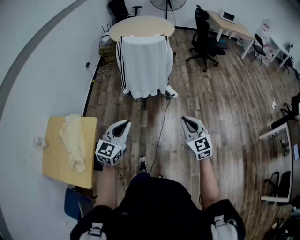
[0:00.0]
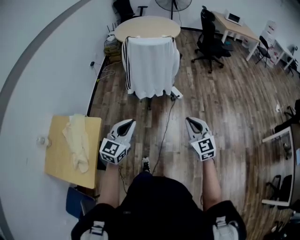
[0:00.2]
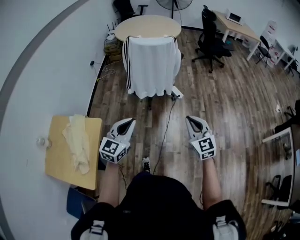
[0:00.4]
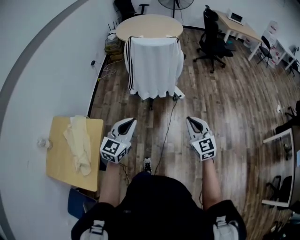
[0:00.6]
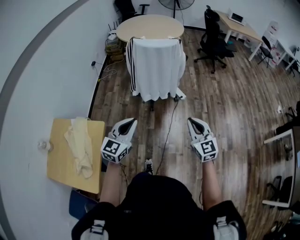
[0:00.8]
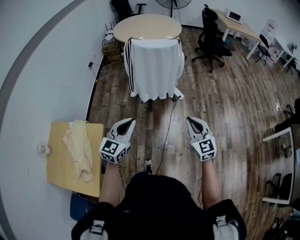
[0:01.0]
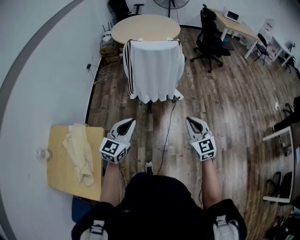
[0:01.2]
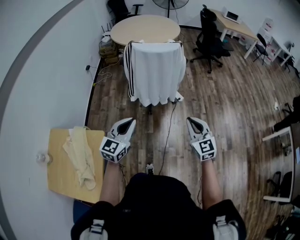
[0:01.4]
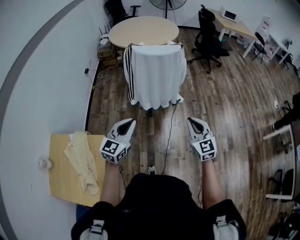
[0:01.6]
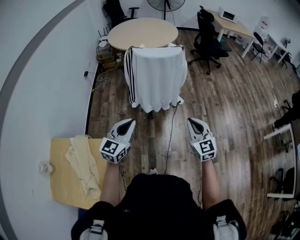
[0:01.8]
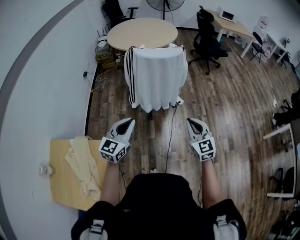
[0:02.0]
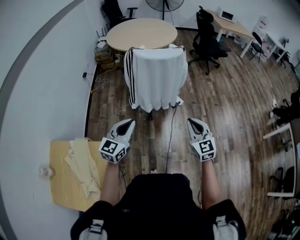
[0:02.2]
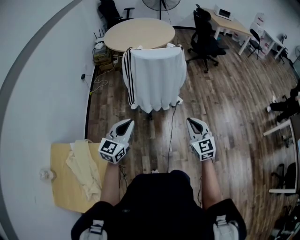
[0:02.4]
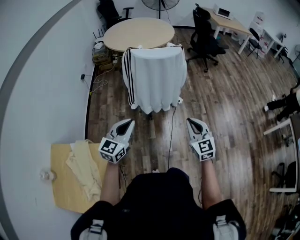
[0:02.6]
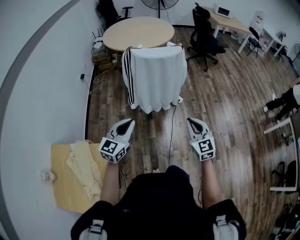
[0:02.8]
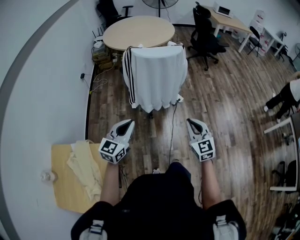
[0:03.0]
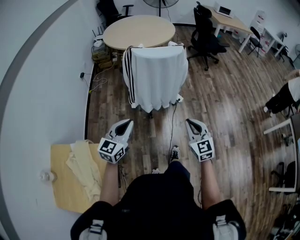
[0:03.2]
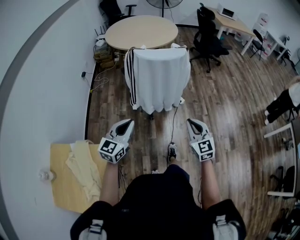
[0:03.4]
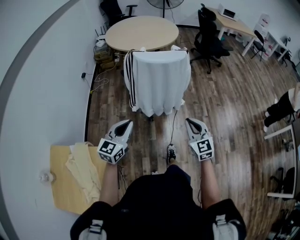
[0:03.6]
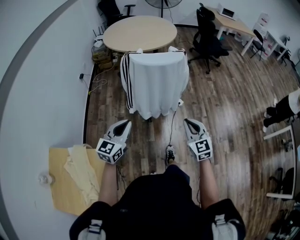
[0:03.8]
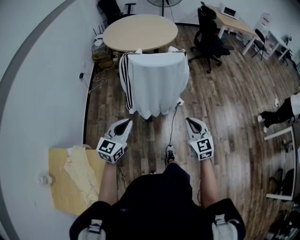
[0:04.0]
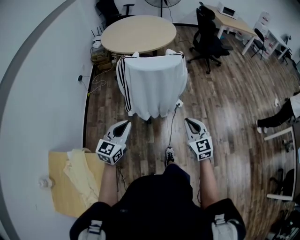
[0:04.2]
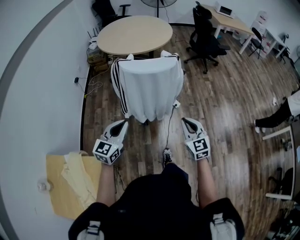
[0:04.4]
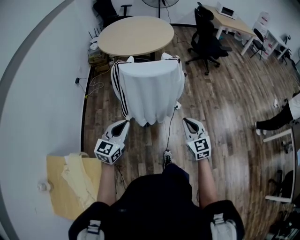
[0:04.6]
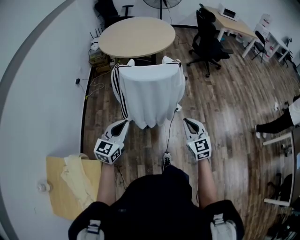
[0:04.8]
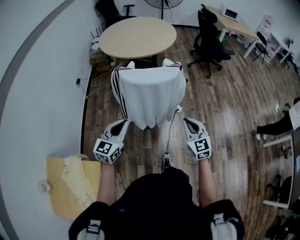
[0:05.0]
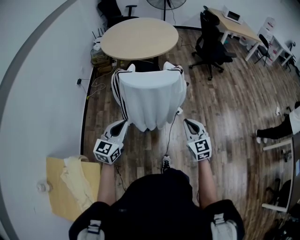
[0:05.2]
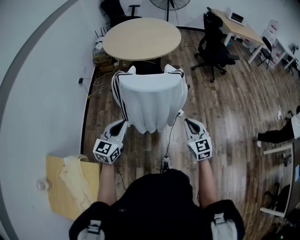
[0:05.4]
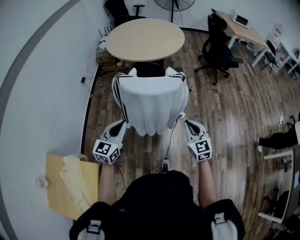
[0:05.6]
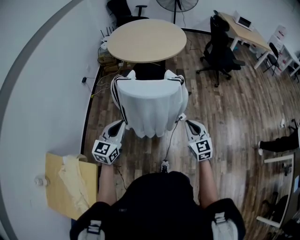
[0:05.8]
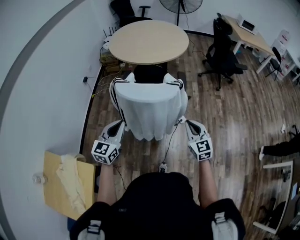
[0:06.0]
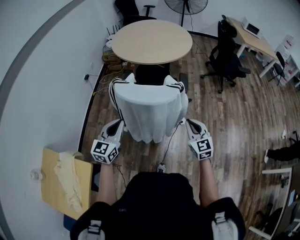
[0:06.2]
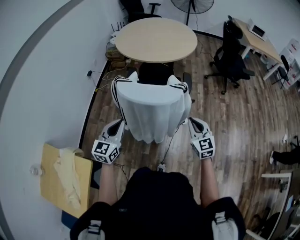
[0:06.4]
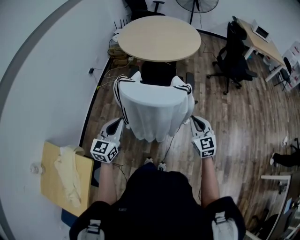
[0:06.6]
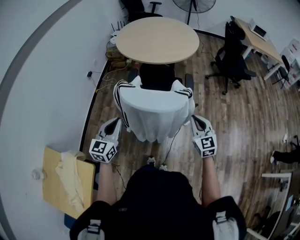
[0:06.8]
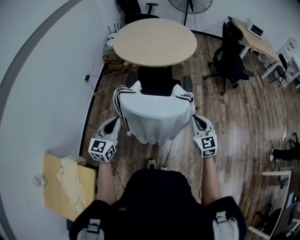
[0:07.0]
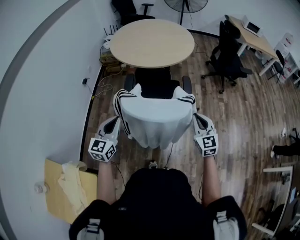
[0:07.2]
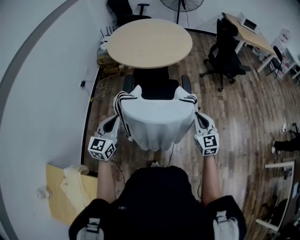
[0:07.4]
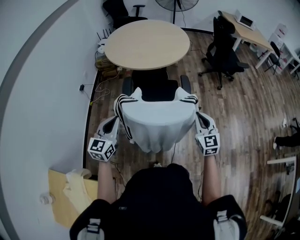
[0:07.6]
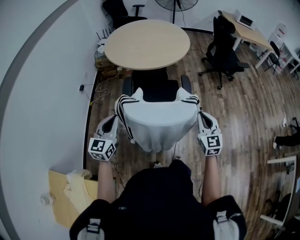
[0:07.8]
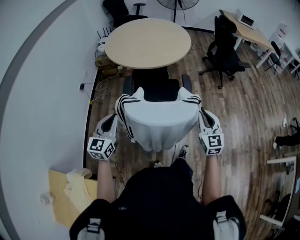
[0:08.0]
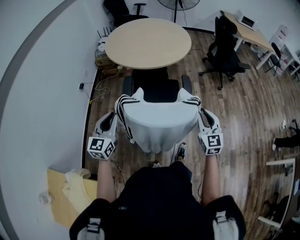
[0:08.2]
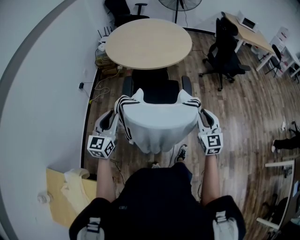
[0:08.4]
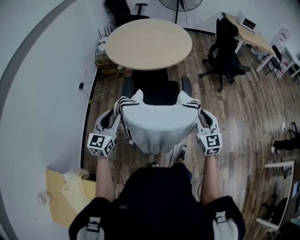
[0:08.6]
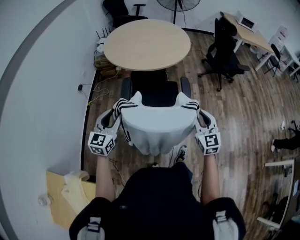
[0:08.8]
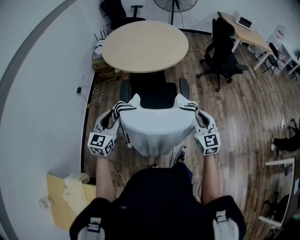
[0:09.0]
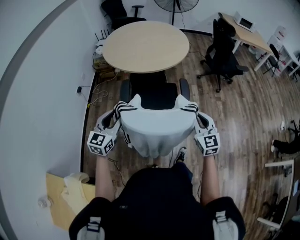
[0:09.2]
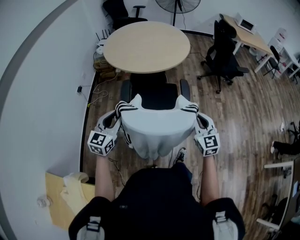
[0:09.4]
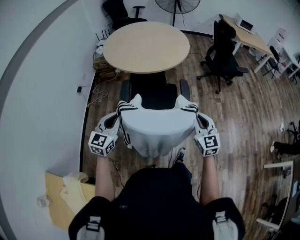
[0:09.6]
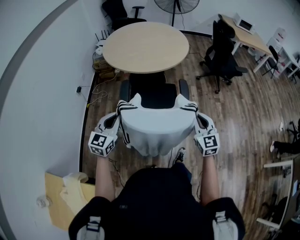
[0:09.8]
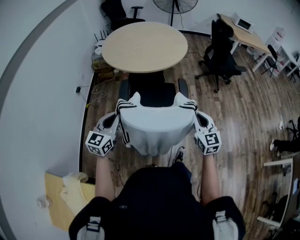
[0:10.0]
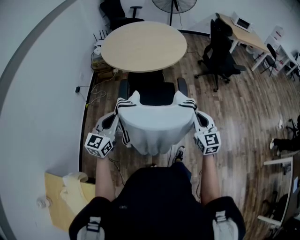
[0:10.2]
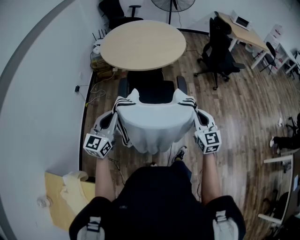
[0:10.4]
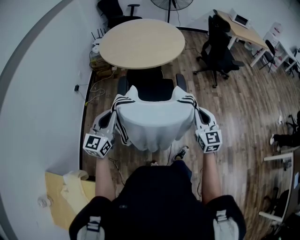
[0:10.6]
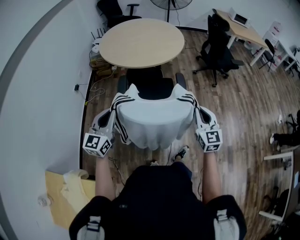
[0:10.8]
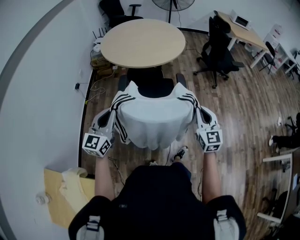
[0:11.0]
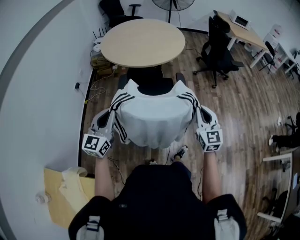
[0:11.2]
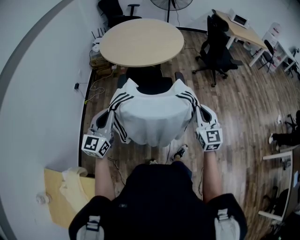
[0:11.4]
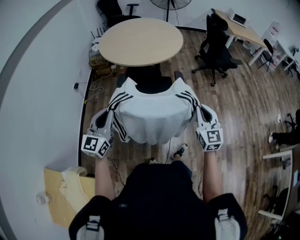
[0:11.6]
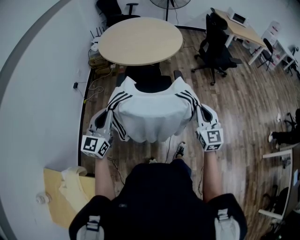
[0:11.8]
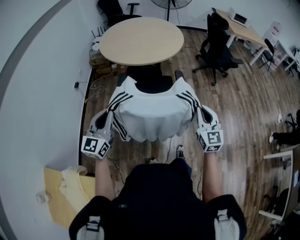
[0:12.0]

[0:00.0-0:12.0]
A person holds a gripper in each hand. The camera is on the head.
0:00.0 to 0:01.6: The two grippers go about 20 cm forward and to the left.
0:01.6 to 0:03.0: The right gripper changes place by approximately 5 cm; the left gripper moves roughly 5 cm.
0:03.0 to 0:04.4: Both grippers move forward, approximately 15 cm.
0:04.4 to 0:06.0: Both grippers move forward, some 15 cm.
0:06.0 to 0:07.6: The right gripper moves forward, roughly 15 cm; the left gripper travels forward and to the left by some 15 cm.
0:07.6 to 0:09.0: The left gripper goes approximately 5 cm forward, and opens its fingers.
0:09.0 to 0:10.4: The left gripper changes place by roughly 5 cm, and closes up.
0:10.4 to 0:12.0: The right gripper ends up roughly 5 cm from where it was. The left gripper travels backward by some 5 cm.

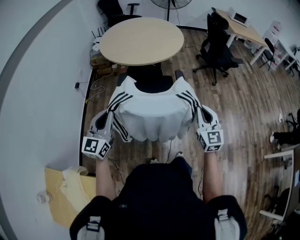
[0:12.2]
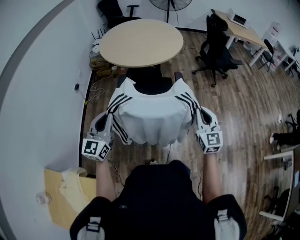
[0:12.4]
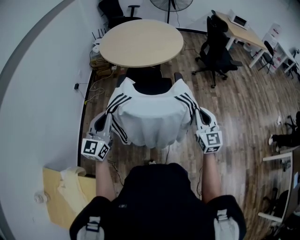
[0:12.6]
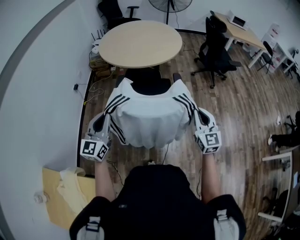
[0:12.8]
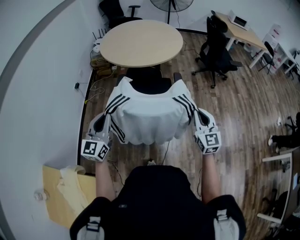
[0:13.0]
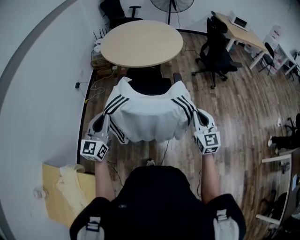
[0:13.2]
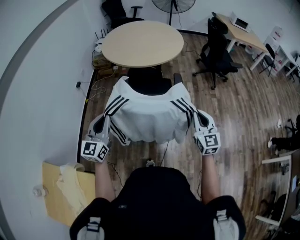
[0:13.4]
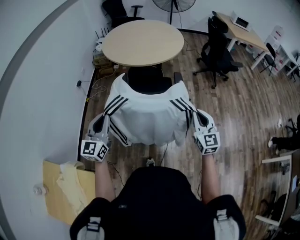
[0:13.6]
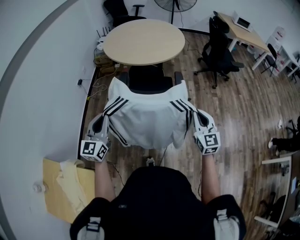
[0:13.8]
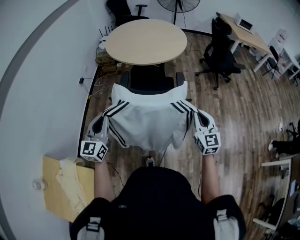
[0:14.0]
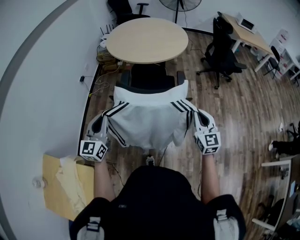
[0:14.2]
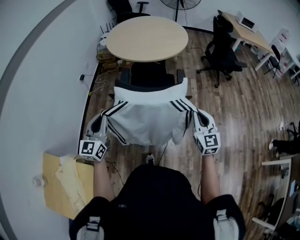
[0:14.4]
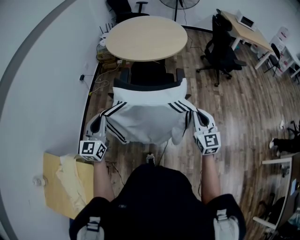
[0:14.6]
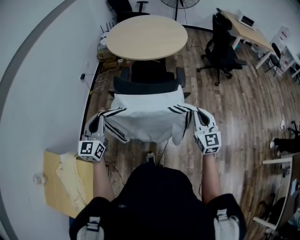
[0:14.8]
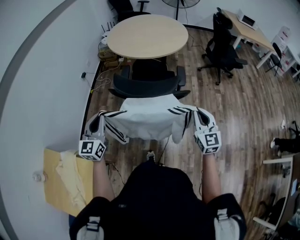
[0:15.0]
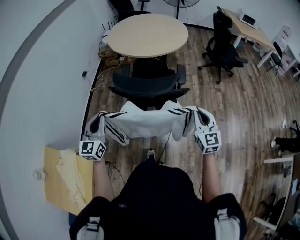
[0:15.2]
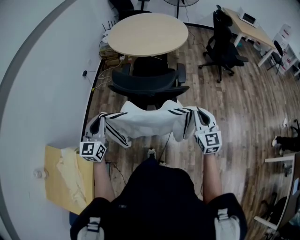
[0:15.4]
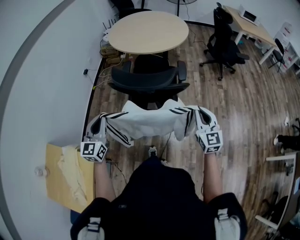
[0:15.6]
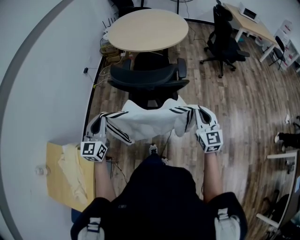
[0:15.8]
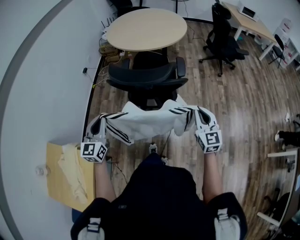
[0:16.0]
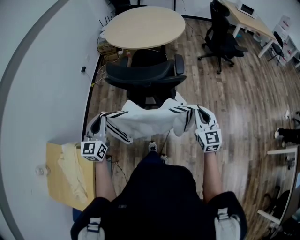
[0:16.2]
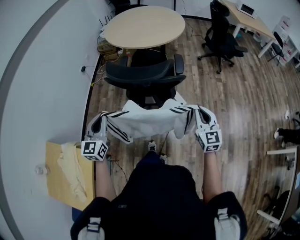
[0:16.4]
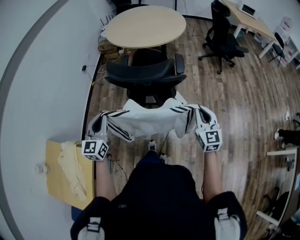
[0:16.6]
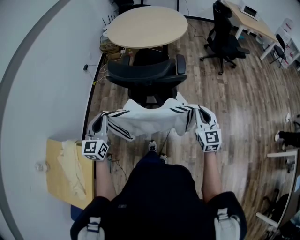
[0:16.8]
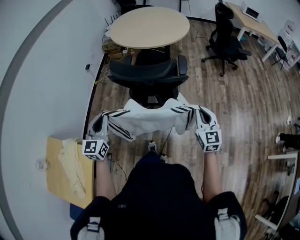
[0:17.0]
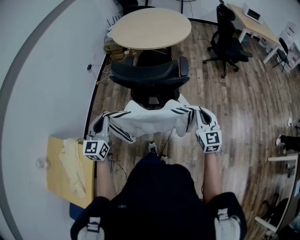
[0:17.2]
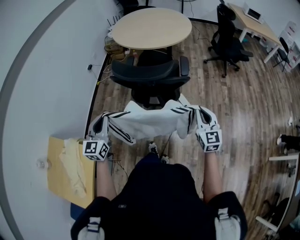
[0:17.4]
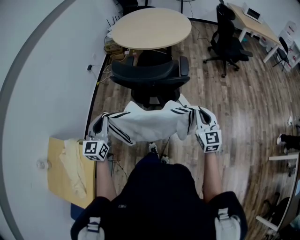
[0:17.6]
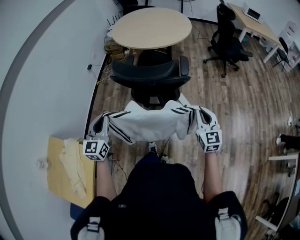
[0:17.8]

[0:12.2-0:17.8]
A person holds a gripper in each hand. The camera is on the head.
0:12.2 to 0:13.6: The left gripper ends up about 5 cm from where it was.
0:13.6 to 0:15.0: The left gripper is displaced backward by roughly 5 cm.
0:15.0 to 0:16.4: Both grippers travel together backward, approximately 5 cm.
0:16.4 to 0:17.8: There are only small adjustments of the grippers.

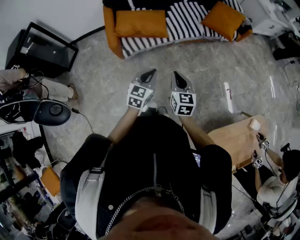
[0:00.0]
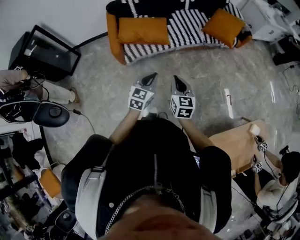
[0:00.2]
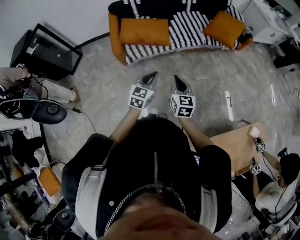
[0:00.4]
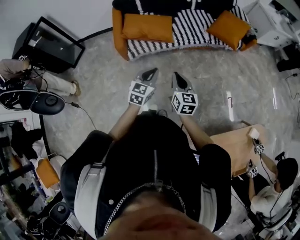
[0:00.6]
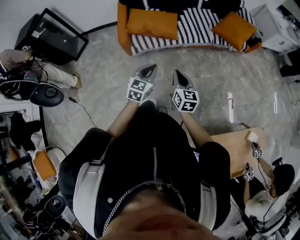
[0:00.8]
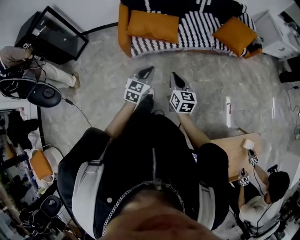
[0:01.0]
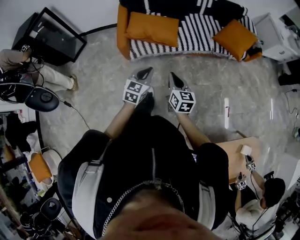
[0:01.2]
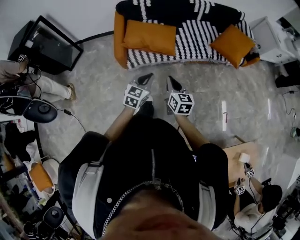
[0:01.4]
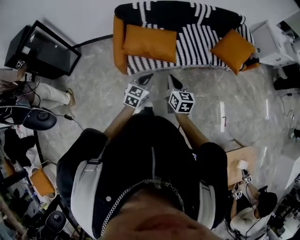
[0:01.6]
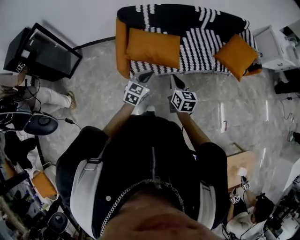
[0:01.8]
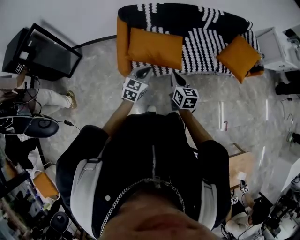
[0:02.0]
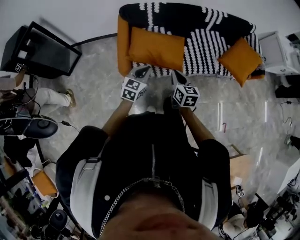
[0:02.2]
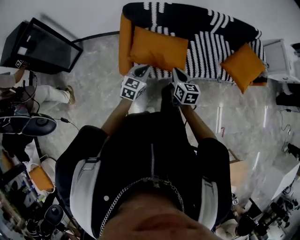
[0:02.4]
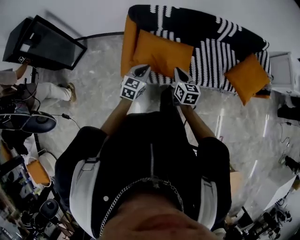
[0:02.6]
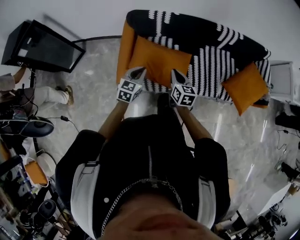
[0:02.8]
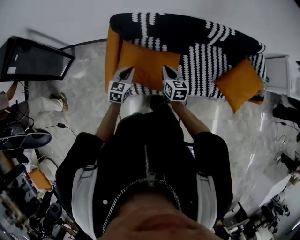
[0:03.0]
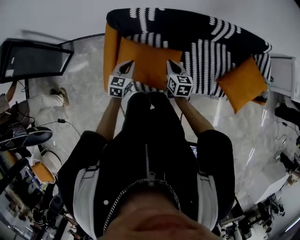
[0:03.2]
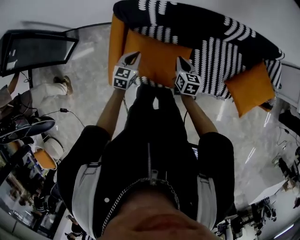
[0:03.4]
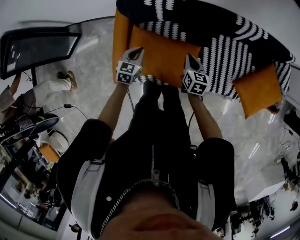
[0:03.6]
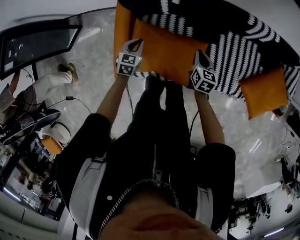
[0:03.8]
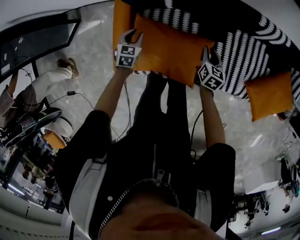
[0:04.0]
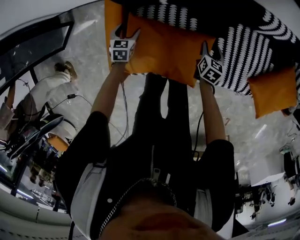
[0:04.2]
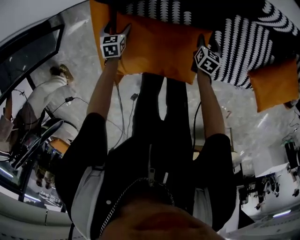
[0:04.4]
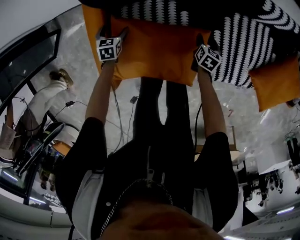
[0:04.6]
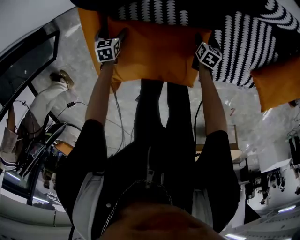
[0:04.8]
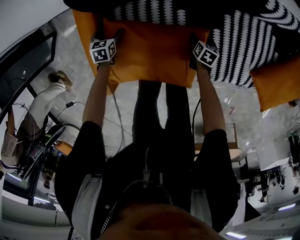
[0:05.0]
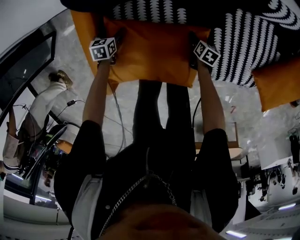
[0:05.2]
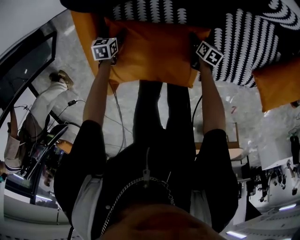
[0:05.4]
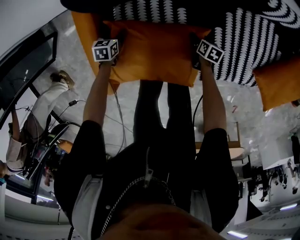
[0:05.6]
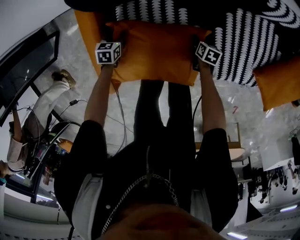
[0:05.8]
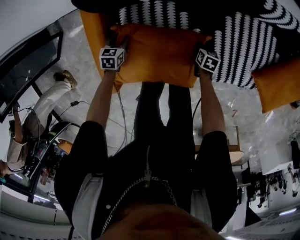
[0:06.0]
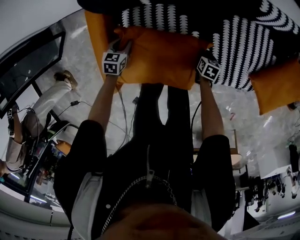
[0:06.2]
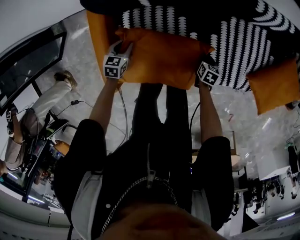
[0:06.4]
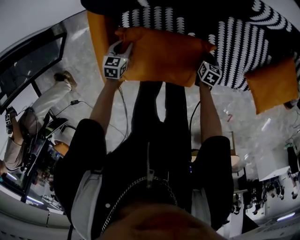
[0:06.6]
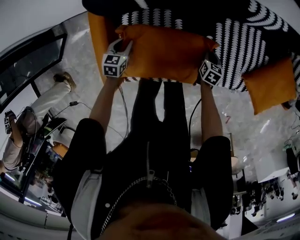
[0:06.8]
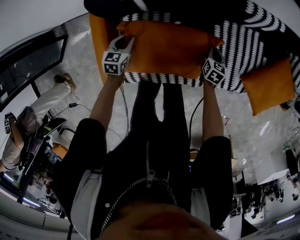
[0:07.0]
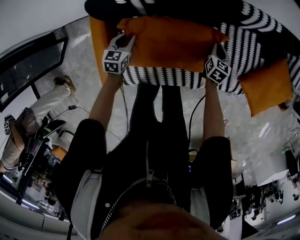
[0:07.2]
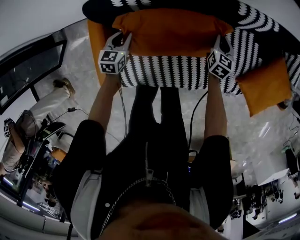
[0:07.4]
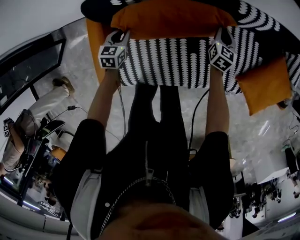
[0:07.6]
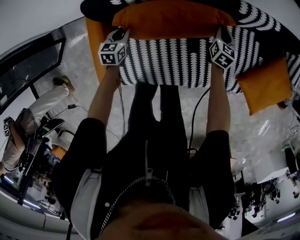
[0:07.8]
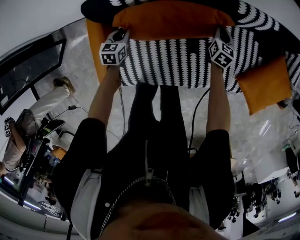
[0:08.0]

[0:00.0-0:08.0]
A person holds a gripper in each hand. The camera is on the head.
0:00.0 to 0:01.6: The two grippers go some 20 cm forward and to the left.
0:01.6 to 0:03.2: The two grippers travel together, forward, roughly 50 cm. The left gripper swivels some 20 degrees.
0:03.2 to 0:04.8: Both grippers move downward and forward, roughly 40 cm. The left gripper rotates about 30 degrees, and opens its fingers, while the right gripper rotates about 40 degrees, and opens up.
0:04.8 to 0:06.4: The left gripper heads to the right, upward and backward, covering approximately 10 cm, and closes, while the right gripper travels backward by roughly 5 cm, and closes.
0:06.4 to 0:08.0: The left gripper heads forward and upward, covering roughly 10 cm, while the right gripper travels forward and upward by approximately 25 cm, and swivels about 30 degrees.
